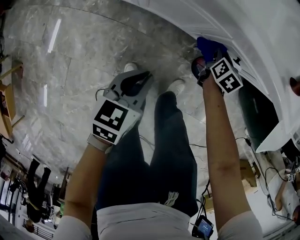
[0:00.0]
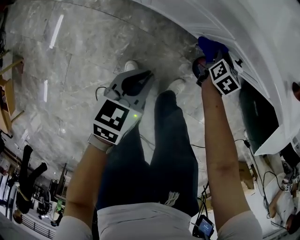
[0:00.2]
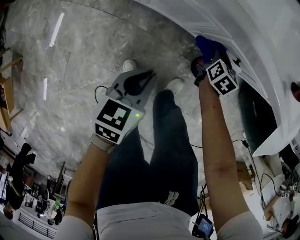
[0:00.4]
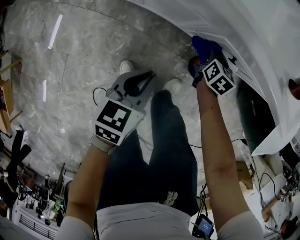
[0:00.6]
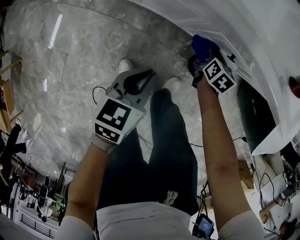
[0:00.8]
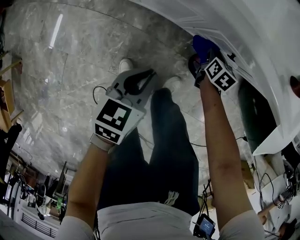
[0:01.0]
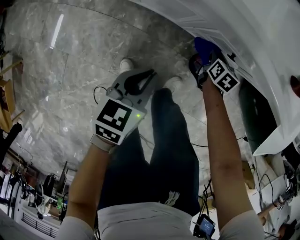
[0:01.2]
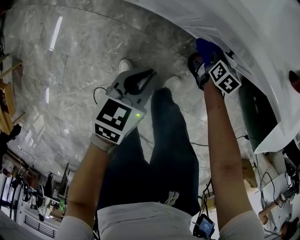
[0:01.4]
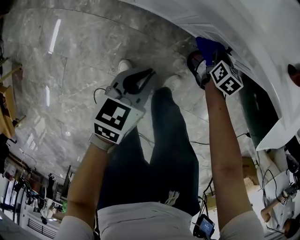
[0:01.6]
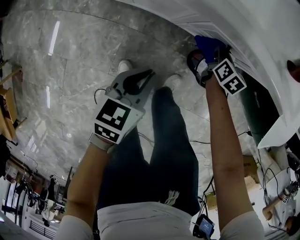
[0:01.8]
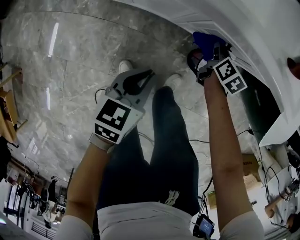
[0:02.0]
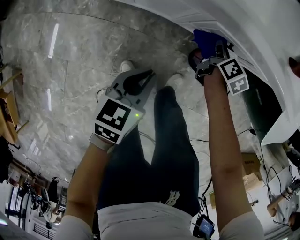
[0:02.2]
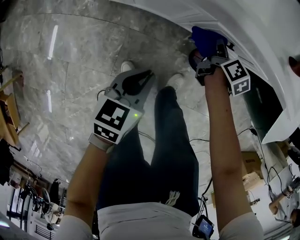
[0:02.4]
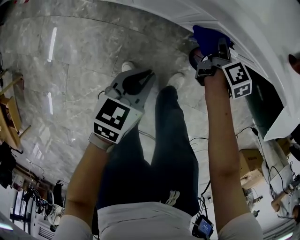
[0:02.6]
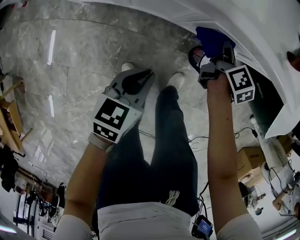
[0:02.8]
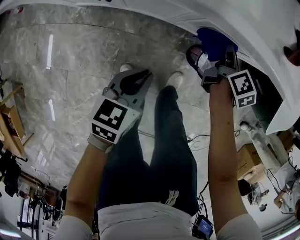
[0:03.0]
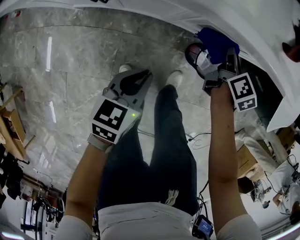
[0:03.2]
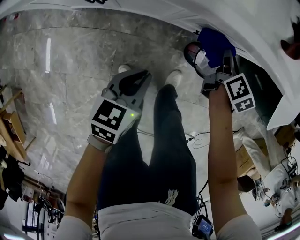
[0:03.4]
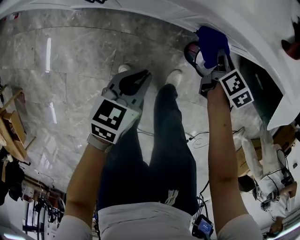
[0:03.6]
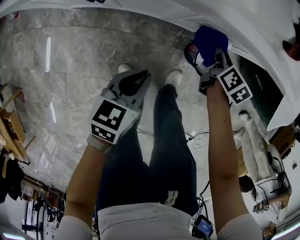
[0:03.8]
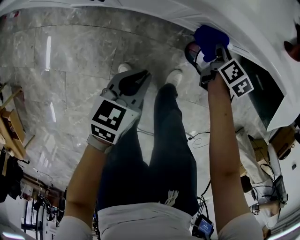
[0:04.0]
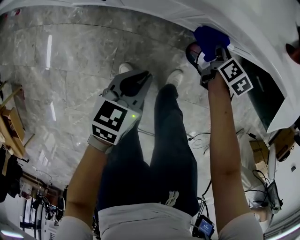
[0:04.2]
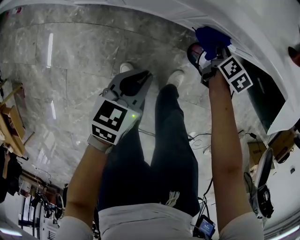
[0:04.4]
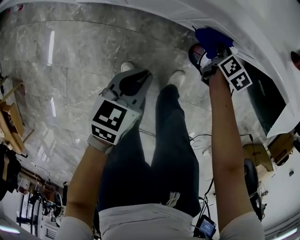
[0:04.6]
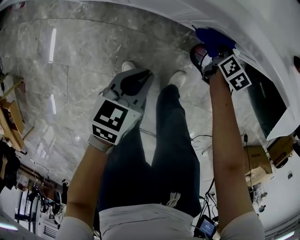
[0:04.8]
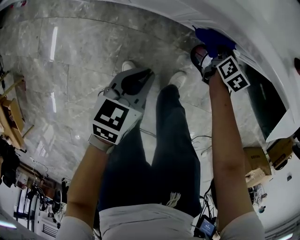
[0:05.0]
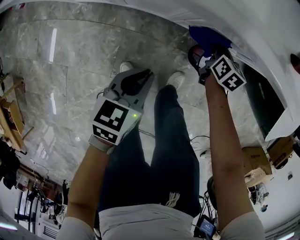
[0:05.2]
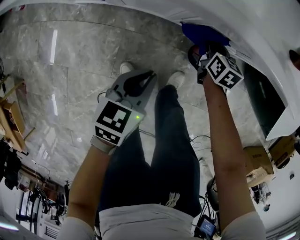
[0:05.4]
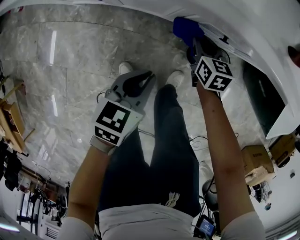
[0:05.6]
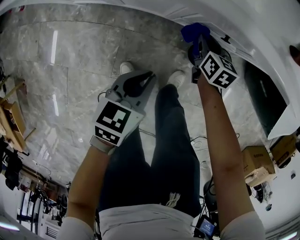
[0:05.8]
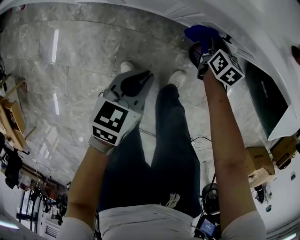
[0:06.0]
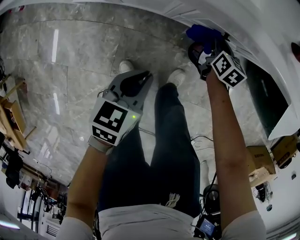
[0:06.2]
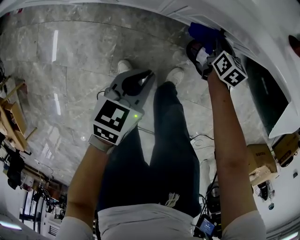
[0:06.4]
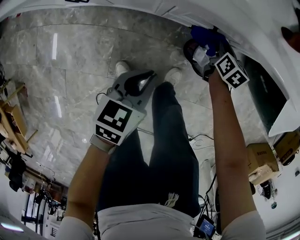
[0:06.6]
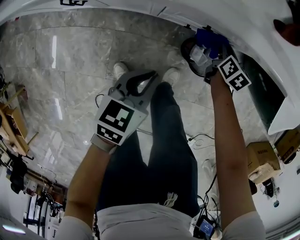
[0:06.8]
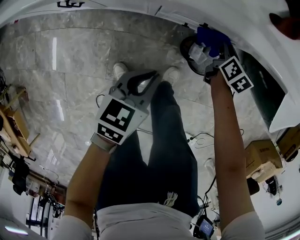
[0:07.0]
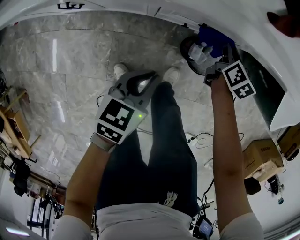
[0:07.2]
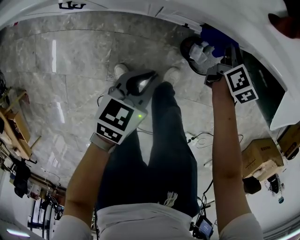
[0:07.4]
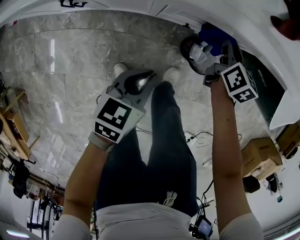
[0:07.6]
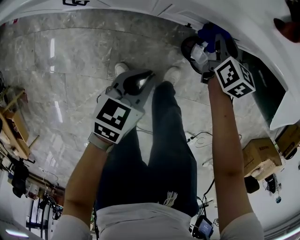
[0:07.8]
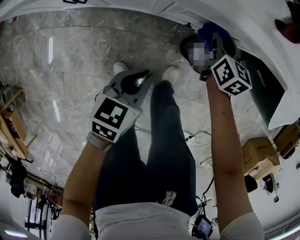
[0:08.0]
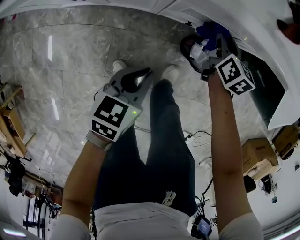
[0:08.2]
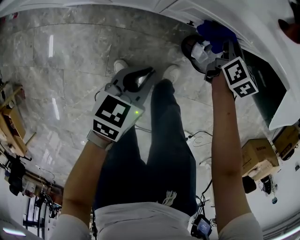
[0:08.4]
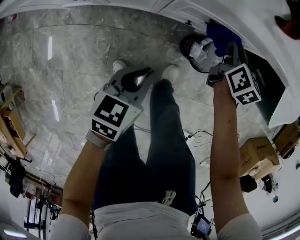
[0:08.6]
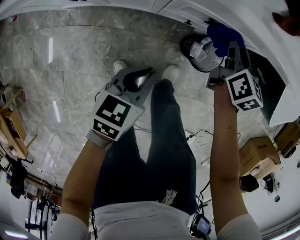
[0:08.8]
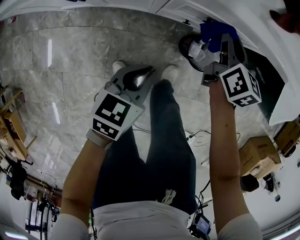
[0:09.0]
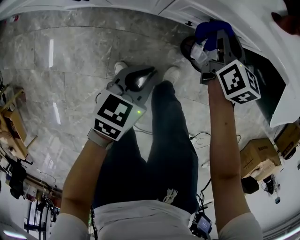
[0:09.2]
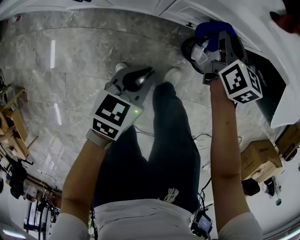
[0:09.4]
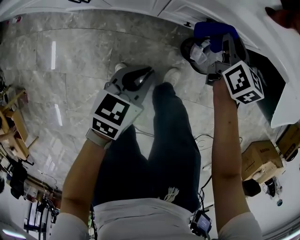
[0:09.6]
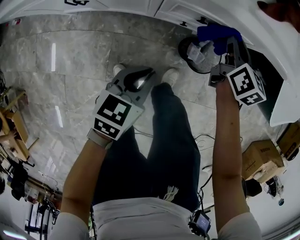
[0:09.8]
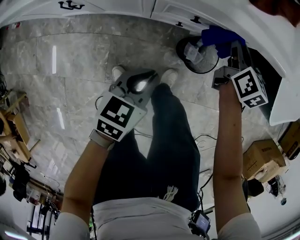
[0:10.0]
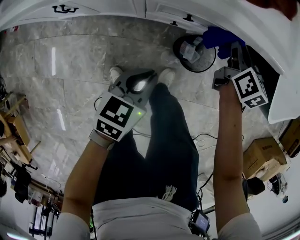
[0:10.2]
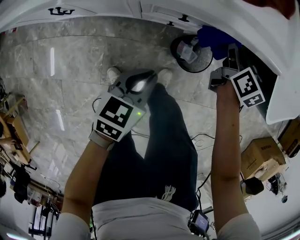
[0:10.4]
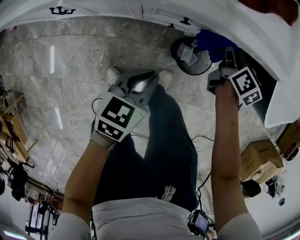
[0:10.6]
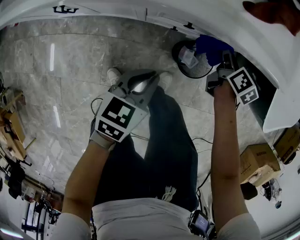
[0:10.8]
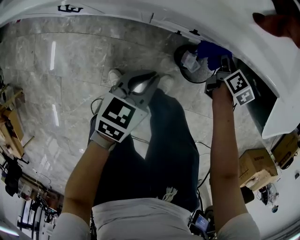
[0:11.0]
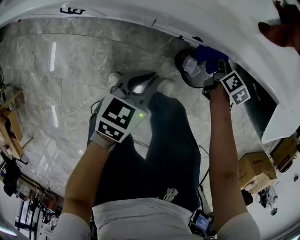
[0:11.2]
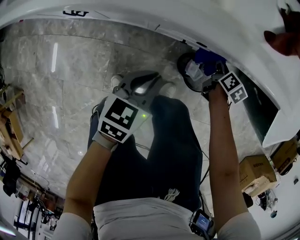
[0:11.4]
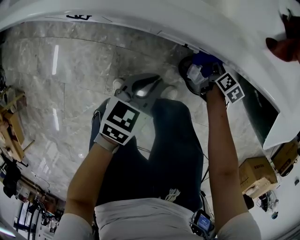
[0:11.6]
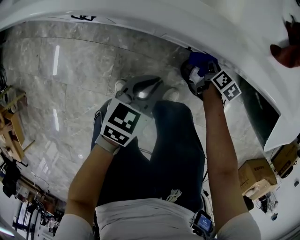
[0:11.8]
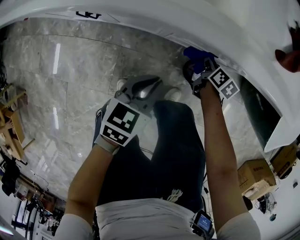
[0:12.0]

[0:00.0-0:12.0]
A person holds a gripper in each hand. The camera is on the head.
0.0 to 1.6 s: The two grippers go roughly 5 cm to the right.
1.6 to 3.0 s: The right gripper heads upward, covering about 10 cm, and rotates approximately 40 degrees.
3.0 to 4.4 s: The right gripper travels downward by about 10 cm, and rotates about 20 degrees.
6.0 to 7.6 s: The left gripper moves to the right, some 5 cm; the right gripper moves upward and to the right, some 15 cm.
7.6 to 9.0 s: The right gripper moves upward, some 5 cm.
9.0 to 10.4 s: The right gripper heads to the right, covering some 10 cm, while the left gripper travels to the right by roughly 5 cm.
10.4 to 12.0 s: The right gripper shifts roughly 20 cm downward and to the left. The left gripper moves to the left, about 10 cm.

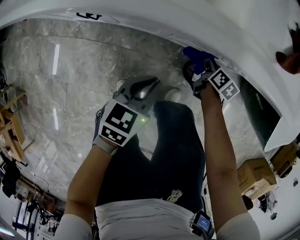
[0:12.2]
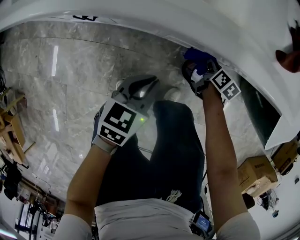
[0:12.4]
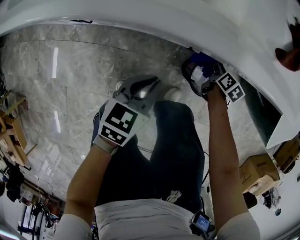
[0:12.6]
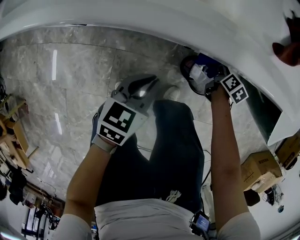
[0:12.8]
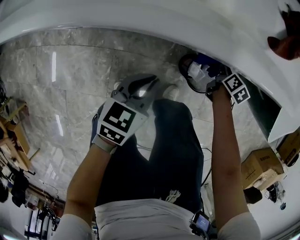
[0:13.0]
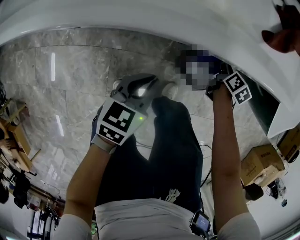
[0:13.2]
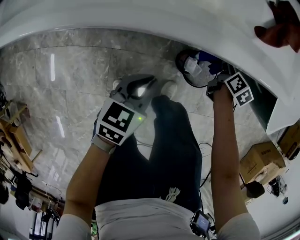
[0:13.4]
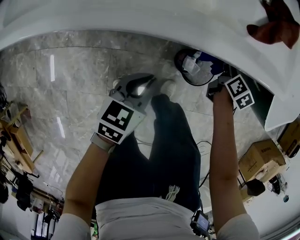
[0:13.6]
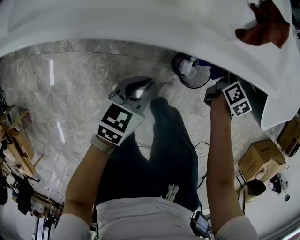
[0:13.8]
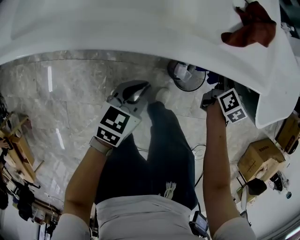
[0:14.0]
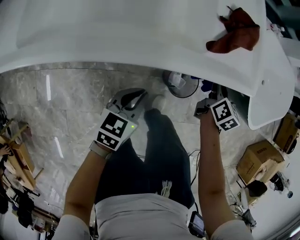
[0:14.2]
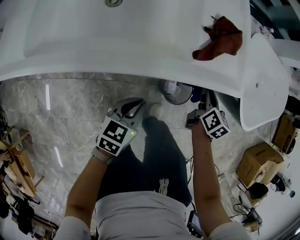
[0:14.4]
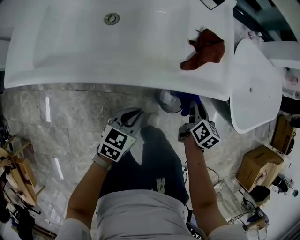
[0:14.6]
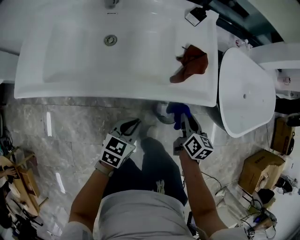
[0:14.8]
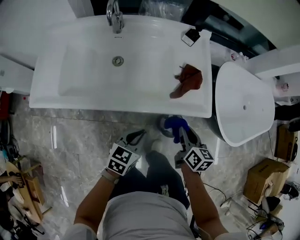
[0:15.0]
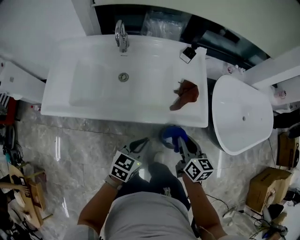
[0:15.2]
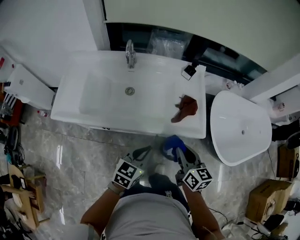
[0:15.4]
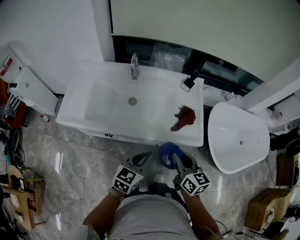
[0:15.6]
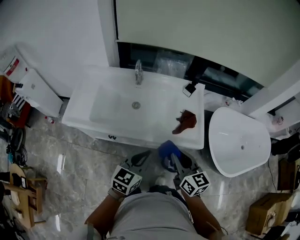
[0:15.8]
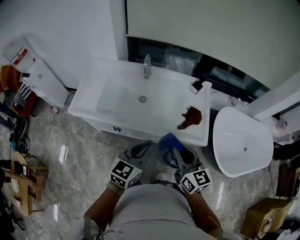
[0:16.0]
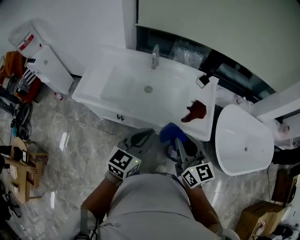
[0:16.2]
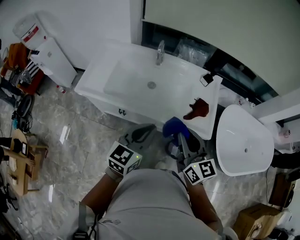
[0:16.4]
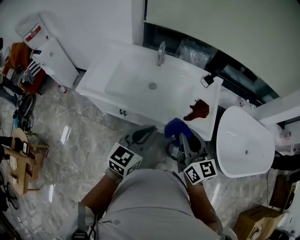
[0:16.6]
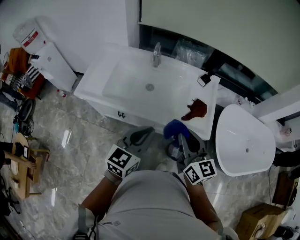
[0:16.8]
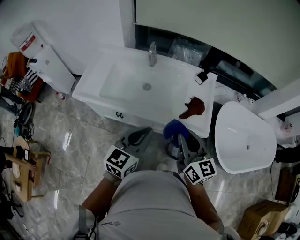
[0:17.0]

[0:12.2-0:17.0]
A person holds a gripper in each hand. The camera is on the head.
12.2 to 13.8 s: The left gripper moves some 5 cm. Meanwhile the right gripper moves upward and to the right, roughly 20 cm.
13.8 to 15.4 s: The two grippers go approximately 30 cm upward. The right gripper rotates approximately 30 degrees.
15.4 to 17.0 s: Both grippers move upward, approximately 15 cm. The left gripper rotates some 20 degrees; the right gripper swivels roughly 20 degrees.

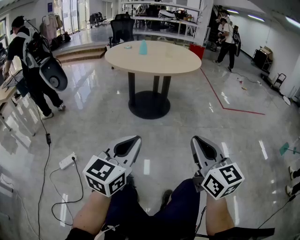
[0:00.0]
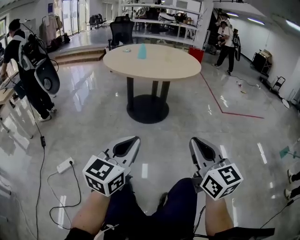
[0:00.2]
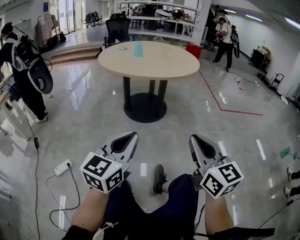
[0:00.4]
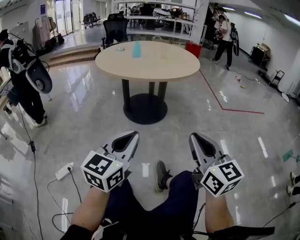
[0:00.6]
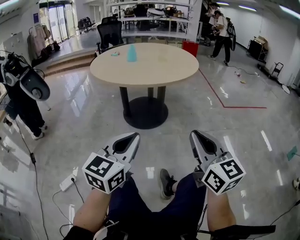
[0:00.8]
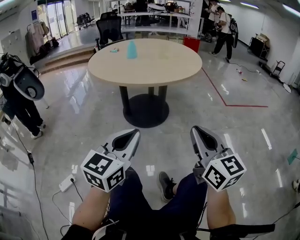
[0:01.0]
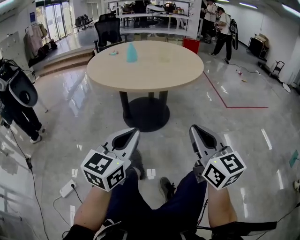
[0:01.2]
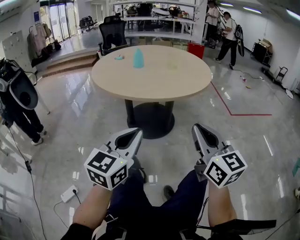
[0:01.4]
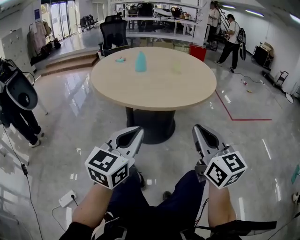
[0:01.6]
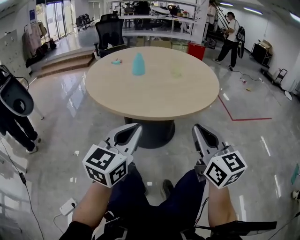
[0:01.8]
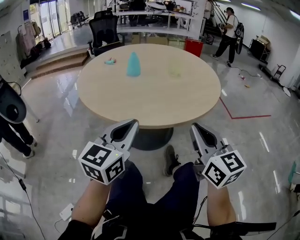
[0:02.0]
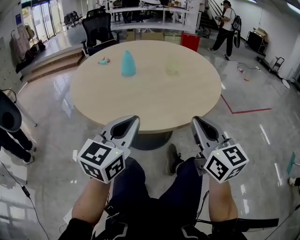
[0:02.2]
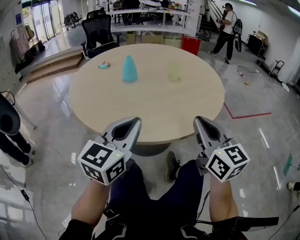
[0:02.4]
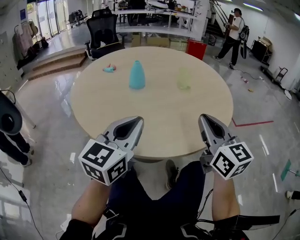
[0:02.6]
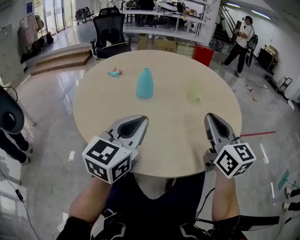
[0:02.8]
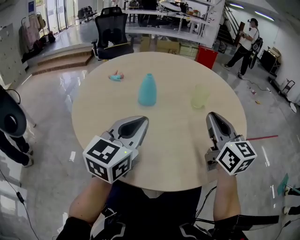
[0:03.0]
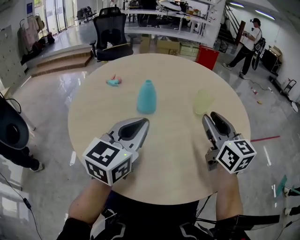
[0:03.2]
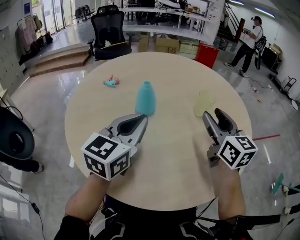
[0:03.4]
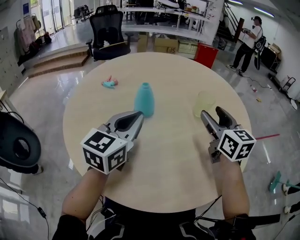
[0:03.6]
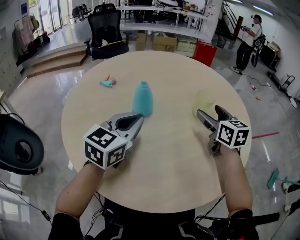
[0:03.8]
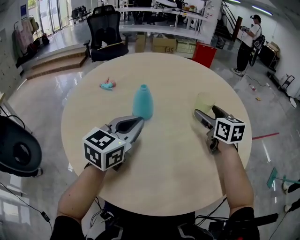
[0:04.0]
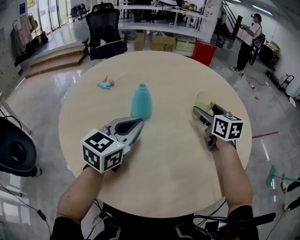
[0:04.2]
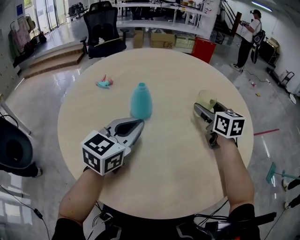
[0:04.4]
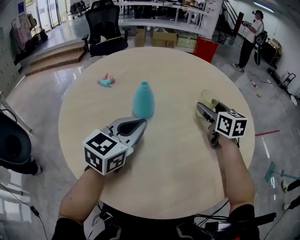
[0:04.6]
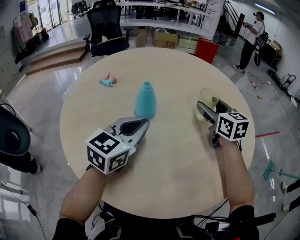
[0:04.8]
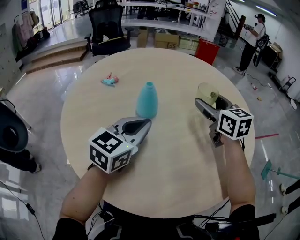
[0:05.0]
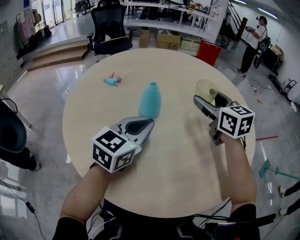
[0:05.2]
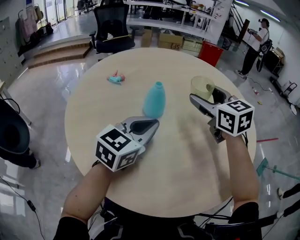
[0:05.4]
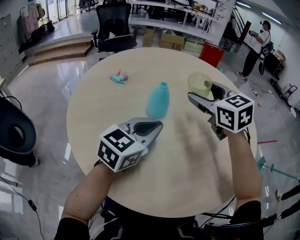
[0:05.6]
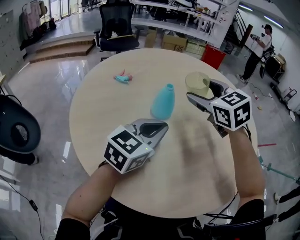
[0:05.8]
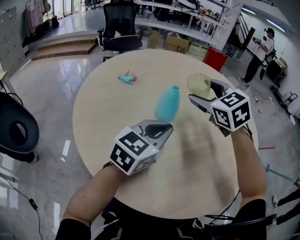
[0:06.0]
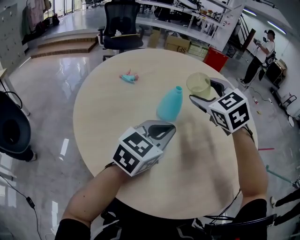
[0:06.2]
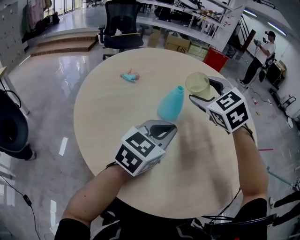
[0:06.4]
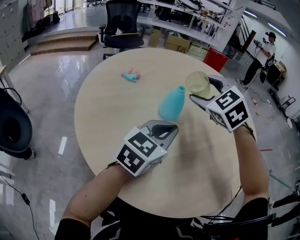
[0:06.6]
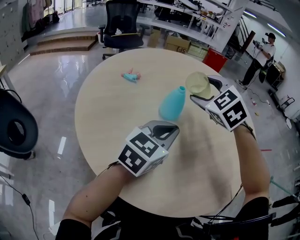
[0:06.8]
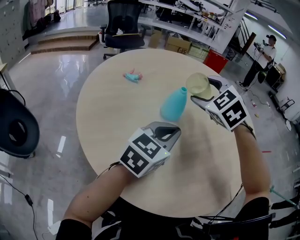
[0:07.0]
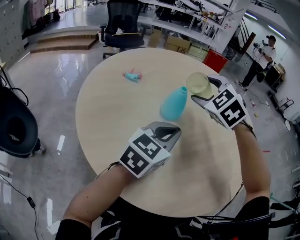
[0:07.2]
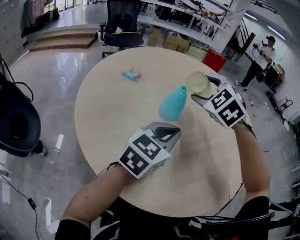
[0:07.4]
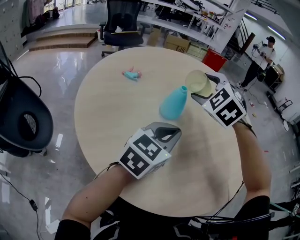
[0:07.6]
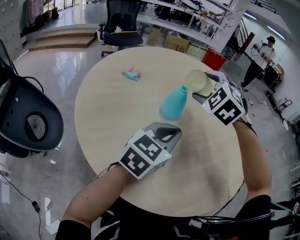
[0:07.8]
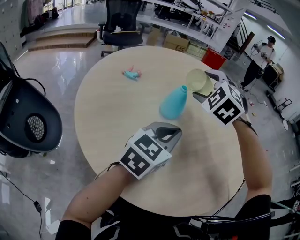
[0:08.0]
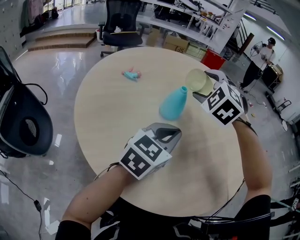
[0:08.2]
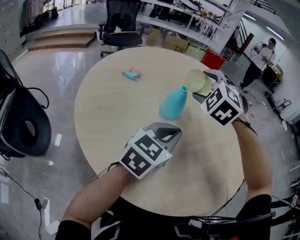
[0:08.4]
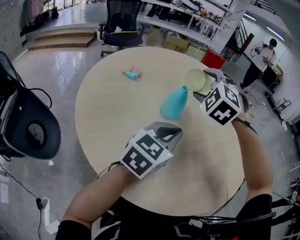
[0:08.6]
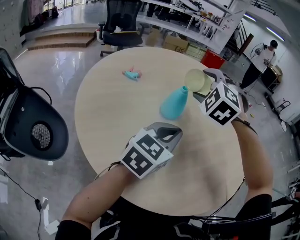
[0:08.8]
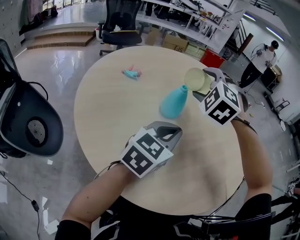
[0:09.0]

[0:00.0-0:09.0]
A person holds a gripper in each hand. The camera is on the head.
0.0 to 1.6 s: Both grippers move forward, roughly 35 cm.
1.6 to 3.0 s: Both grippers travel together forward, approximately 40 cm.
3.0 to 4.4 s: The left gripper heads forward and downward, covering roughly 10 cm. The right gripper travels forward and downward by some 20 cm, and opens.
4.4 to 6.0 s: The right gripper shifts roughly 20 cm to the left and upward, and swivels approximately 40 degrees.
6.0 to 7.6 s: The right gripper rotates roughly 30 degrees.
7.6 to 9.0 s: The grippers make only small movements.
